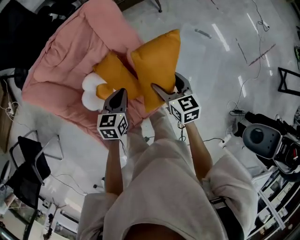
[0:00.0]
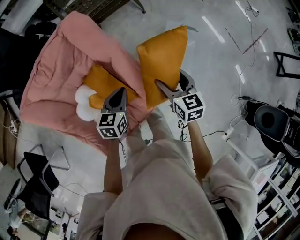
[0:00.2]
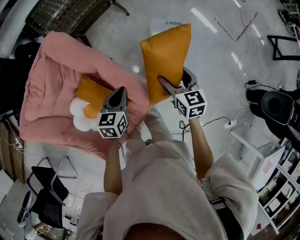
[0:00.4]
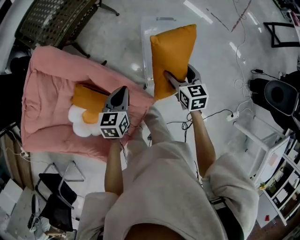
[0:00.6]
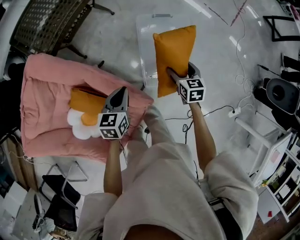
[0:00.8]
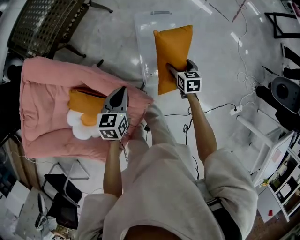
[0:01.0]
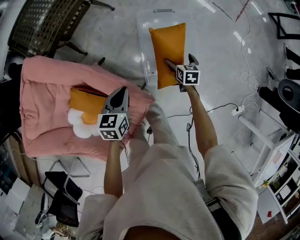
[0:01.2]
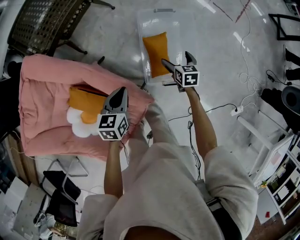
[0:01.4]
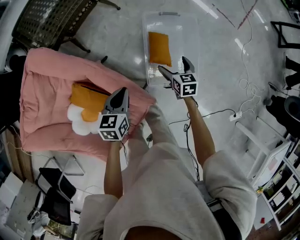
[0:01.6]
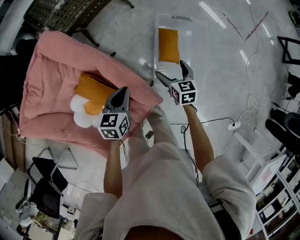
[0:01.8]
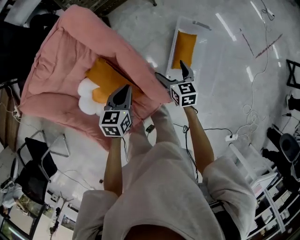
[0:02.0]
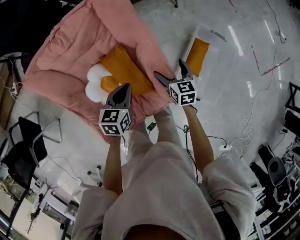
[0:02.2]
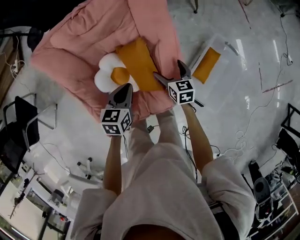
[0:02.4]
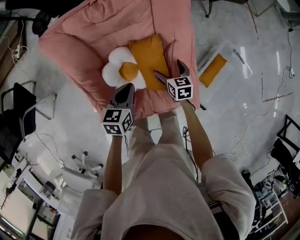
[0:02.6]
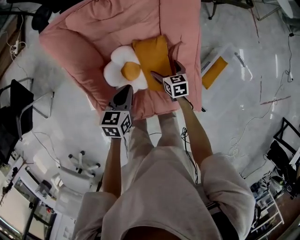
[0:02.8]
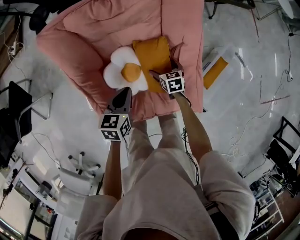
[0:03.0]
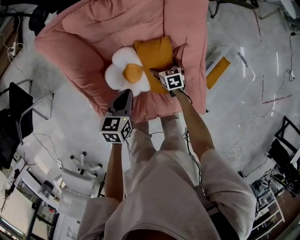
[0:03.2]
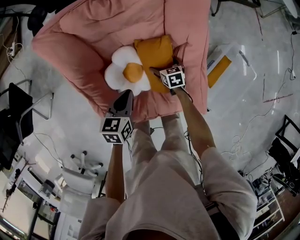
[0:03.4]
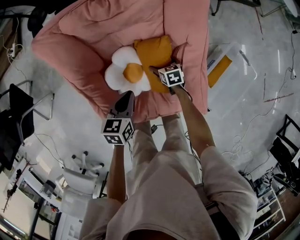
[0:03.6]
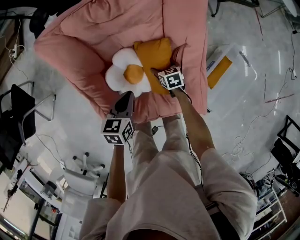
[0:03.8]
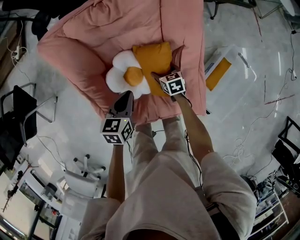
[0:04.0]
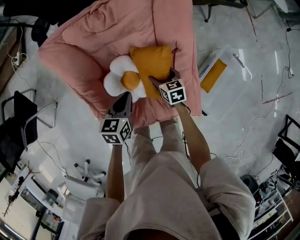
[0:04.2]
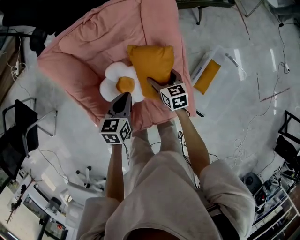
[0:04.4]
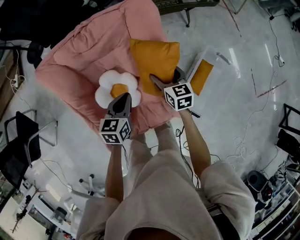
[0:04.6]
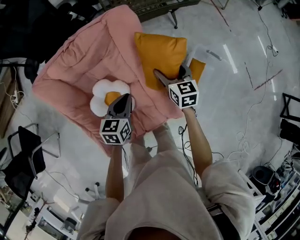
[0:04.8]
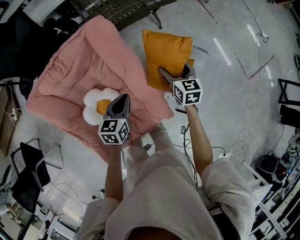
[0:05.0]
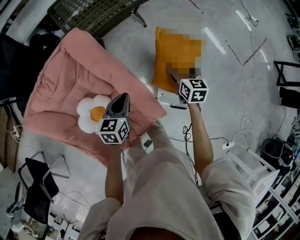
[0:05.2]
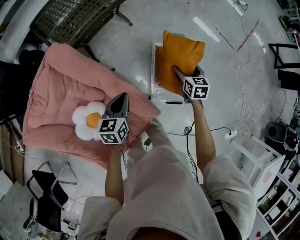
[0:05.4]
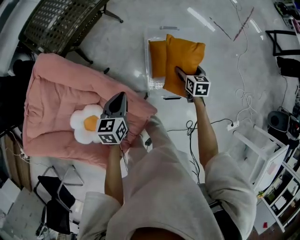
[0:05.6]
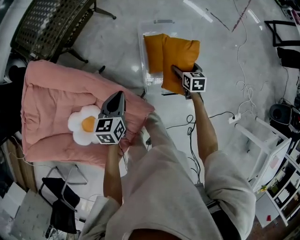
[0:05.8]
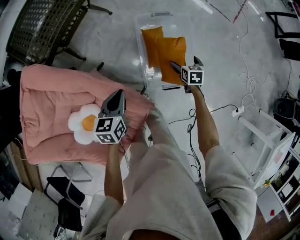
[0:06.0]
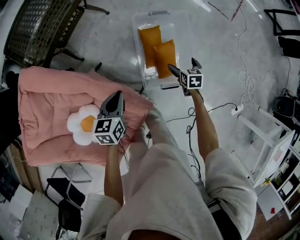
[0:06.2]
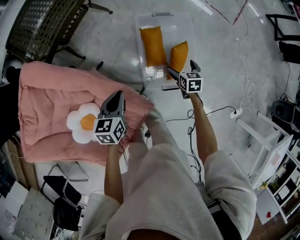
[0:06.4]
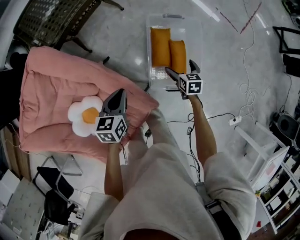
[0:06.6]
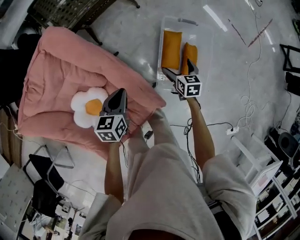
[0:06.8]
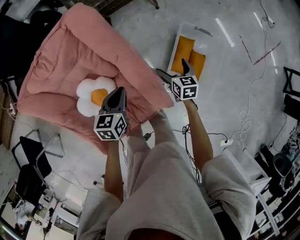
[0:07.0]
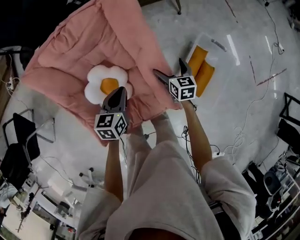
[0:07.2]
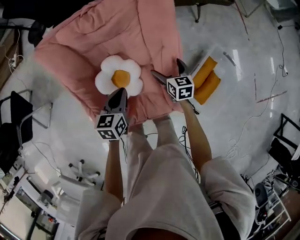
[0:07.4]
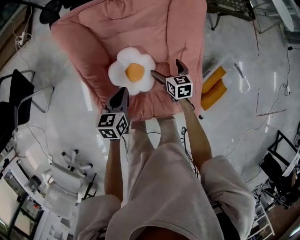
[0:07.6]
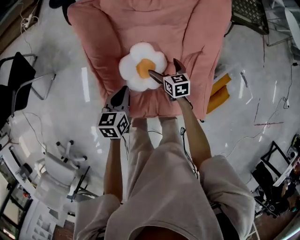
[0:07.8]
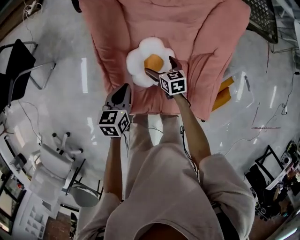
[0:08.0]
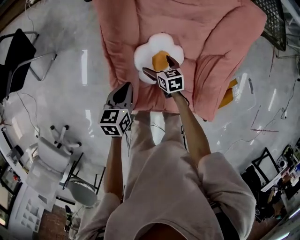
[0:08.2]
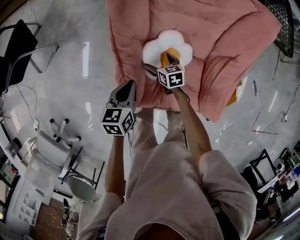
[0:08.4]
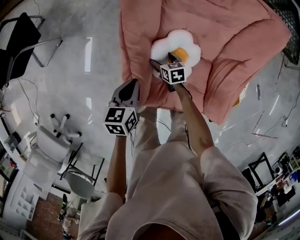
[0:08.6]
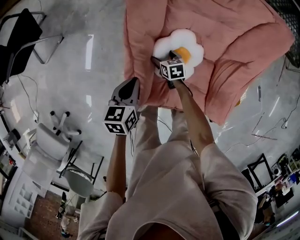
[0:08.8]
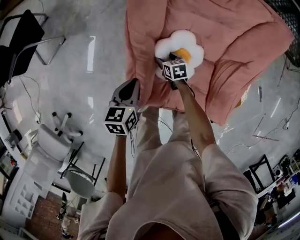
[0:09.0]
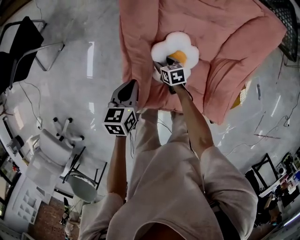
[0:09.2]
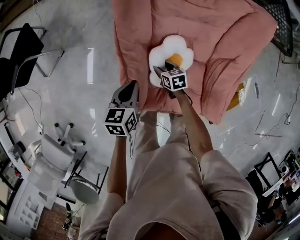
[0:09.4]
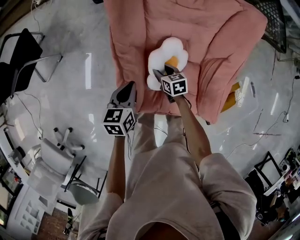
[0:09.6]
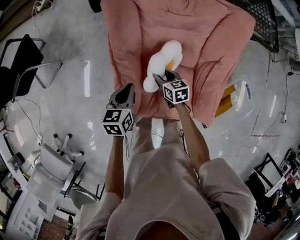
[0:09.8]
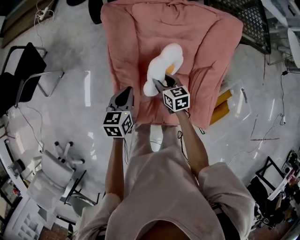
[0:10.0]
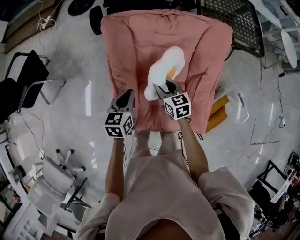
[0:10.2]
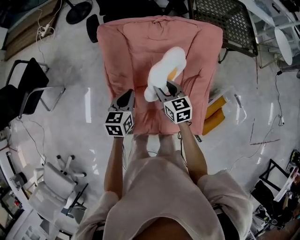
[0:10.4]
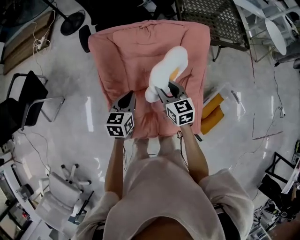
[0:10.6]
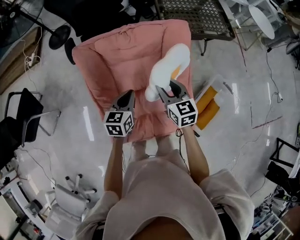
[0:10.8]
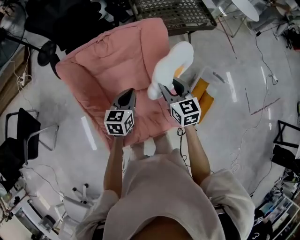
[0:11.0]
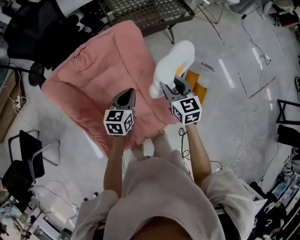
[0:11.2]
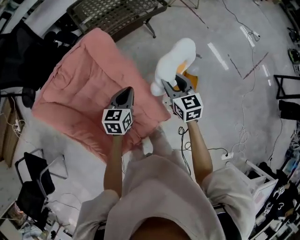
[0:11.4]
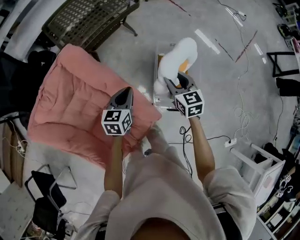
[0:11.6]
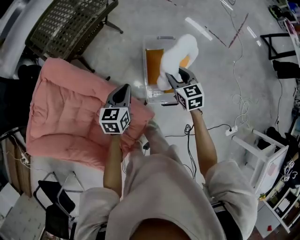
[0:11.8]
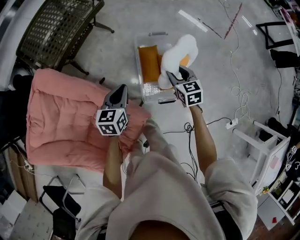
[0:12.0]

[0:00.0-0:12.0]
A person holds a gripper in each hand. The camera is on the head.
0:00.0 to 0:01.6: The left gripper changes place by roughly 25 cm, and turns by some 20 degrees. The right gripper shifts by some 35 cm, and changes its angle by some 30 degrees.
0:01.6 to 0:03.0: Both grippers are carried about 50 cm. The left gripper rotates about 40 degrees; the right gripper swivels some 50 degrees.
0:03.0 to 0:04.4: The right gripper shifts some 15 cm upward; the left gripper moves to the right, roughly 5 cm.
0:04.4 to 0:06.0: The right gripper moves approximately 60 cm, and changes its angle by some 60 degrees. The left gripper changes place by approximately 40 cm, and changes its angle by roughly 40 degrees.
0:06.0 to 0:07.6: The two grippers travel together, some 50 cm. The right gripper swivels about 60 degrees, while the left gripper swivels about 50 degrees.
0:07.6 to 0:09.0: The left gripper heads to the left, covering about 20 cm. The right gripper goes roughly 35 cm to the left and downward, rotates approximately 30 degrees, and closes its fingers.
0:09.0 to 0:10.4: The right gripper goes about 35 cm upward and to the right, and turns by approximately 30 degrees, while the left gripper goes some 20 cm upward and to the right.
0:10.4 to 0:12.0: The two grippers travel together, approximately 60 cm. The right gripper changes its angle by roughly 60 degrees; the left gripper turns by some 60 degrees.

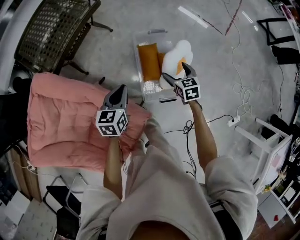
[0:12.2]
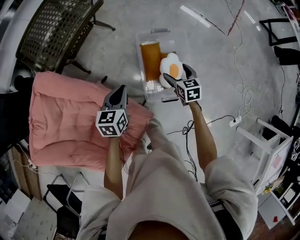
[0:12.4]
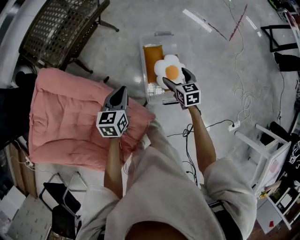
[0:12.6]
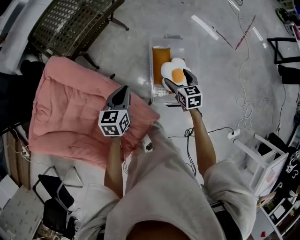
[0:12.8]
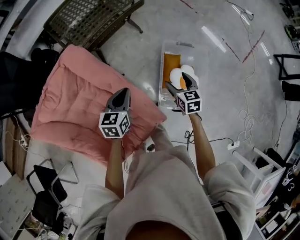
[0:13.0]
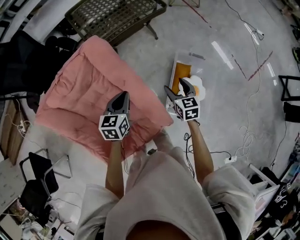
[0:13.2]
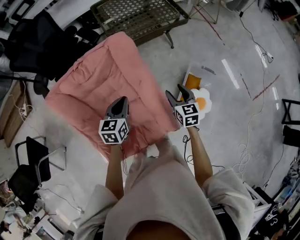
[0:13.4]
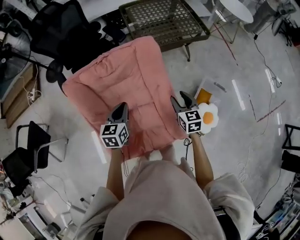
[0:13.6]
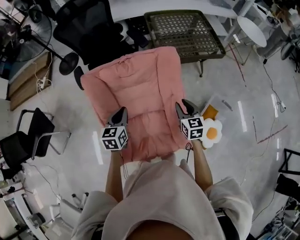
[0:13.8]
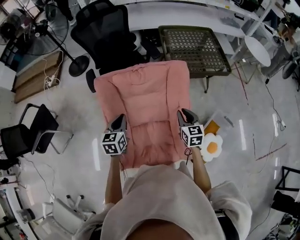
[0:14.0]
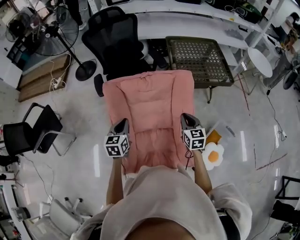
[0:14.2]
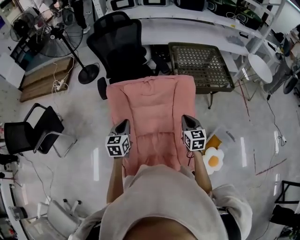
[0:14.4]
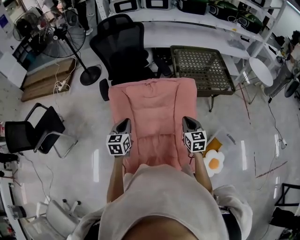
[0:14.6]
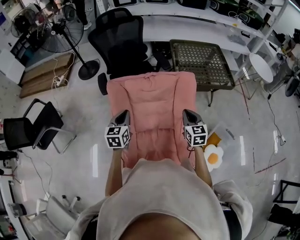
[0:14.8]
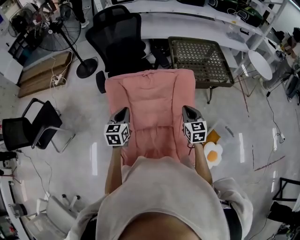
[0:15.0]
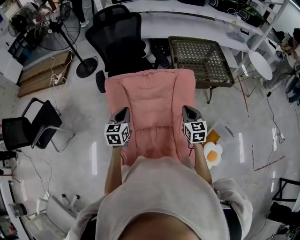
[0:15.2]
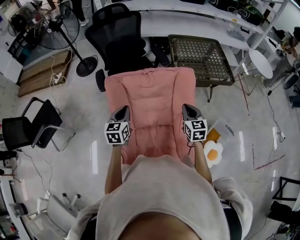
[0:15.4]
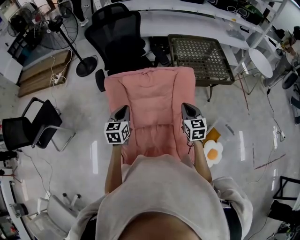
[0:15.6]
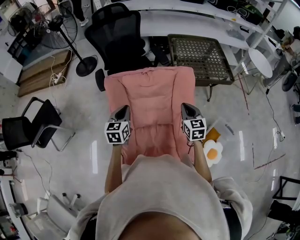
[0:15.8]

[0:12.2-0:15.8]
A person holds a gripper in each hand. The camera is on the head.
0:12.2 to 0:14.0: The pair of grippers is taken about 50 cm. The right gripper changes its angle by about 50 degrees, and closes its fingers. Meanwhile the left gripper rotates some 60 degrees.
0:14.0 to 0:15.8: The right gripper shifts about 5 cm upward.

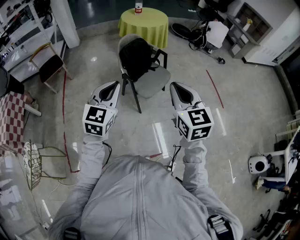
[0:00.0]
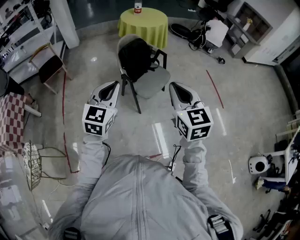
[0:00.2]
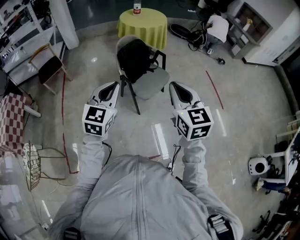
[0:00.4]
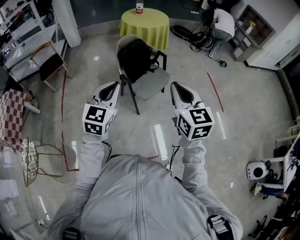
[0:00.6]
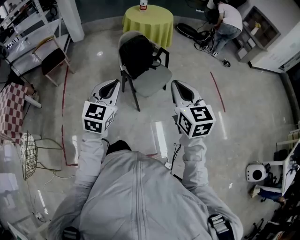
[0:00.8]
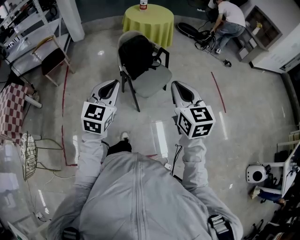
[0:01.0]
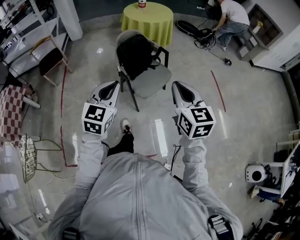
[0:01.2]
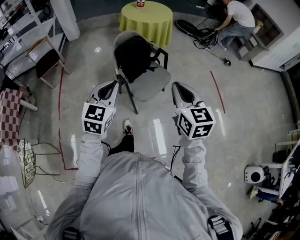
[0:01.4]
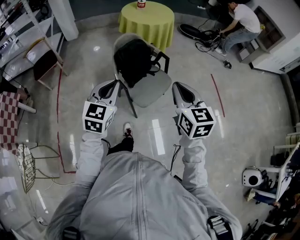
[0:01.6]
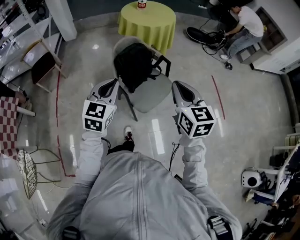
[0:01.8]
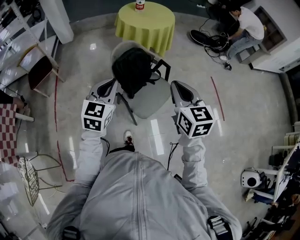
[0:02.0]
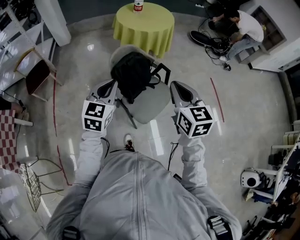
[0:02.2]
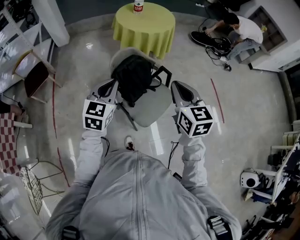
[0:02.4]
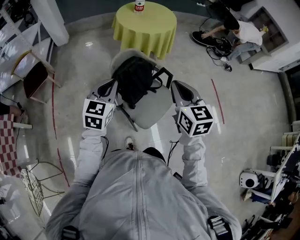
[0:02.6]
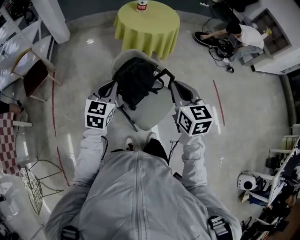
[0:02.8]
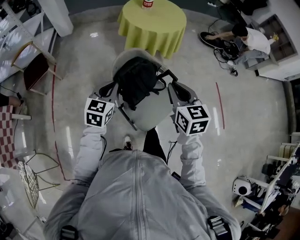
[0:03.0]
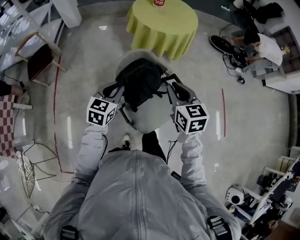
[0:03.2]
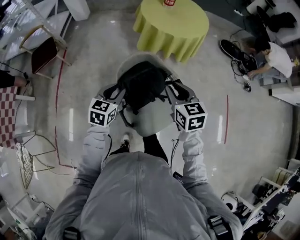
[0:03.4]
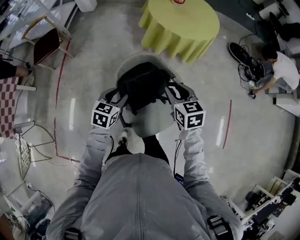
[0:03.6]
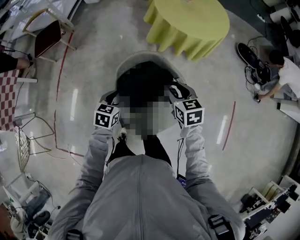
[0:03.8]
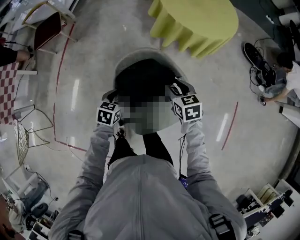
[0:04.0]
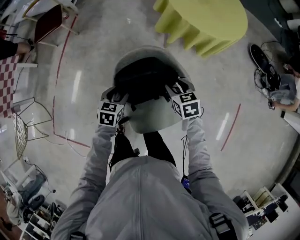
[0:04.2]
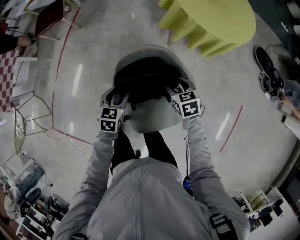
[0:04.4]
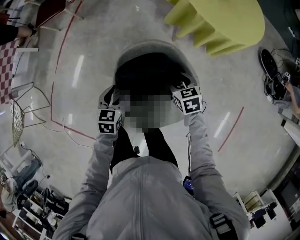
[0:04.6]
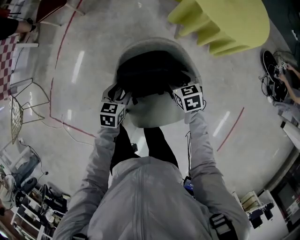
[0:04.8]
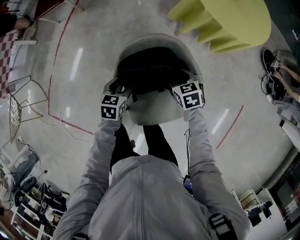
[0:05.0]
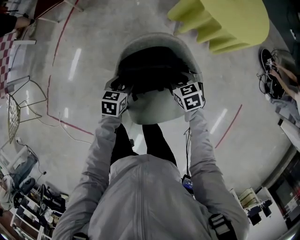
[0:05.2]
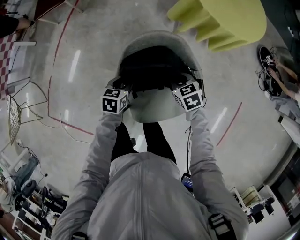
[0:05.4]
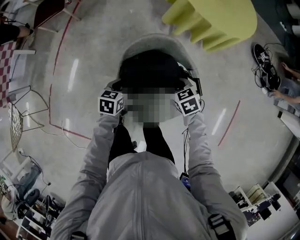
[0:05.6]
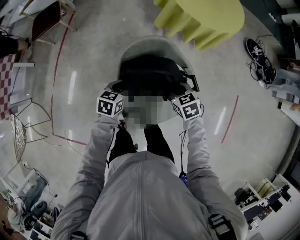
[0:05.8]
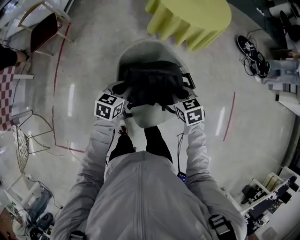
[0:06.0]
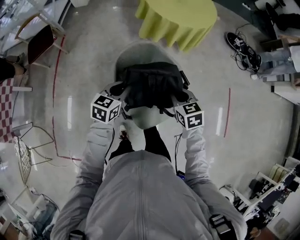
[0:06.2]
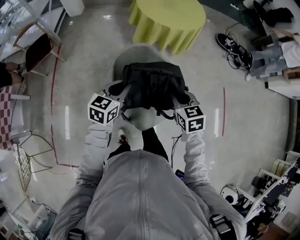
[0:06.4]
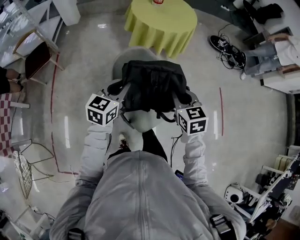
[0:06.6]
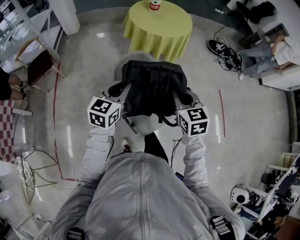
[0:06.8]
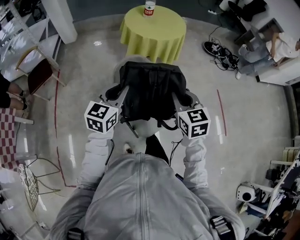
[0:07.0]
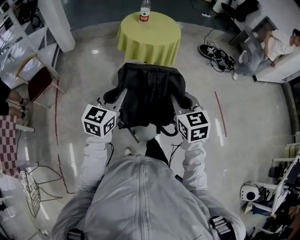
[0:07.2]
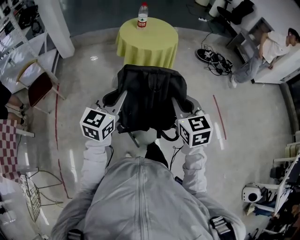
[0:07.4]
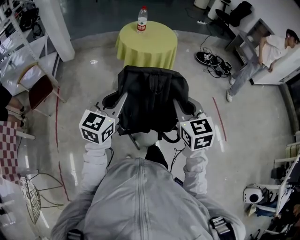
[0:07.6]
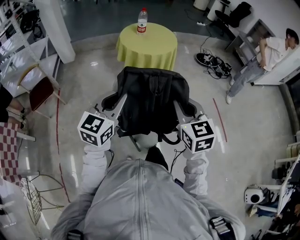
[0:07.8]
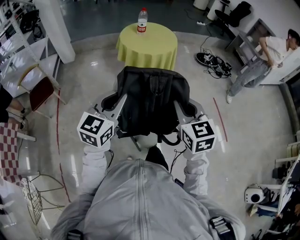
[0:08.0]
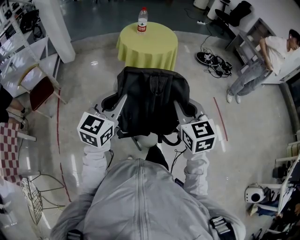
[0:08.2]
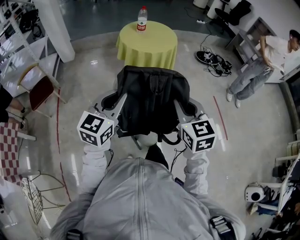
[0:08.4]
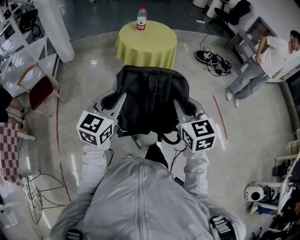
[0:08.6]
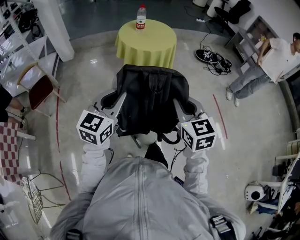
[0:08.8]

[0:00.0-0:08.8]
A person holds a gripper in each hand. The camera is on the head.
0:00.0 to 0:01.4: The right gripper moves forward, to the right and downward, about 15 cm. Meanwhile the left gripper moves forward and downward, roughly 10 cm.
0:01.4 to 0:03.0: The grippers both shift forward by roughly 35 cm.
0:03.0 to 0:04.4: Both grippers move downward, approximately 25 cm. The left gripper turns by some 40 degrees, and opens its fingers. Meanwhile the right gripper changes its angle by roughly 50 degrees, and opens its fingers.
0:04.4 to 0:05.8: The left gripper closes its fingers. Meanwhile the right gripper is displaced backward by about 5 cm, and closes.
0:05.8 to 0:07.4: The grippers both shift upward by about 35 cm. The right gripper tilts its fingers some 30 degrees upward. The left gripper angles its fingers upward, by some 40 degrees.
0:07.4 to 0:08.8: The grippers move only a little.
